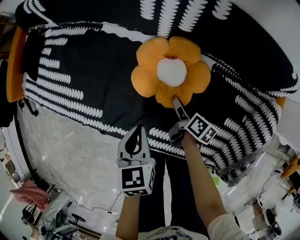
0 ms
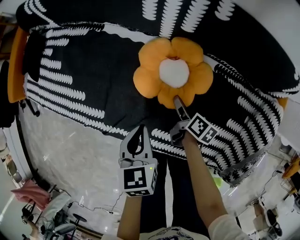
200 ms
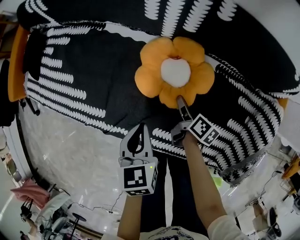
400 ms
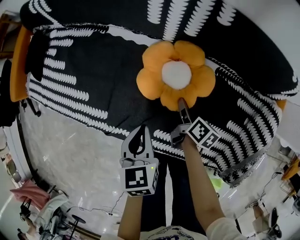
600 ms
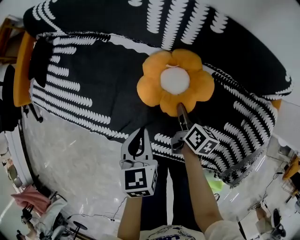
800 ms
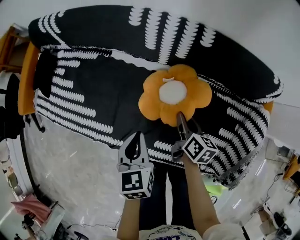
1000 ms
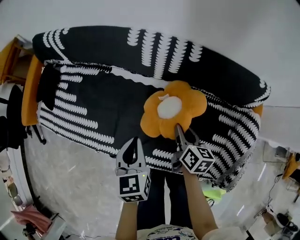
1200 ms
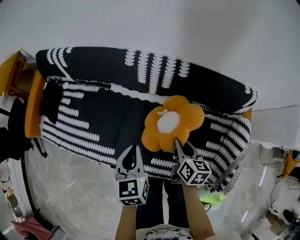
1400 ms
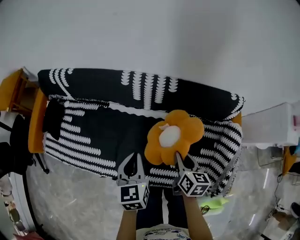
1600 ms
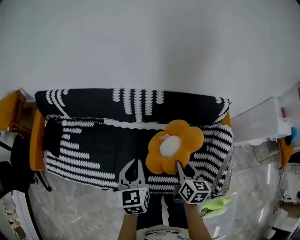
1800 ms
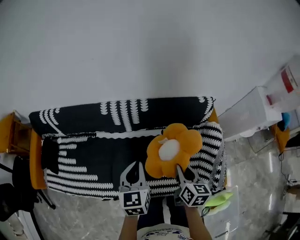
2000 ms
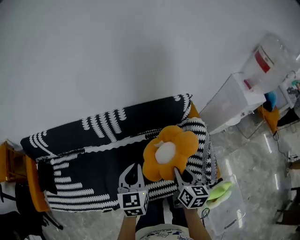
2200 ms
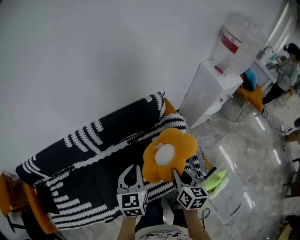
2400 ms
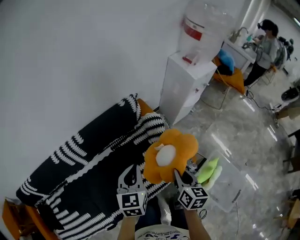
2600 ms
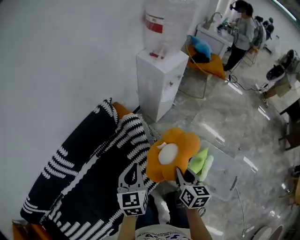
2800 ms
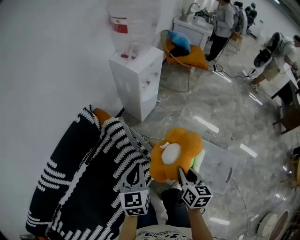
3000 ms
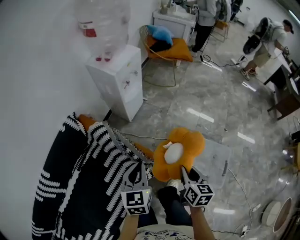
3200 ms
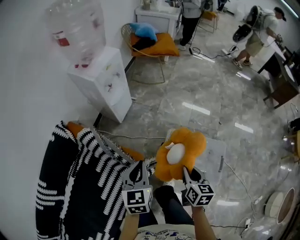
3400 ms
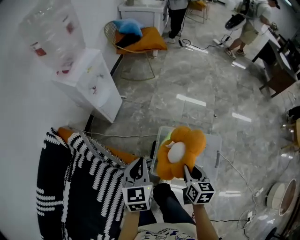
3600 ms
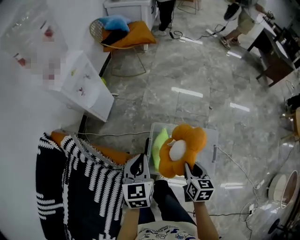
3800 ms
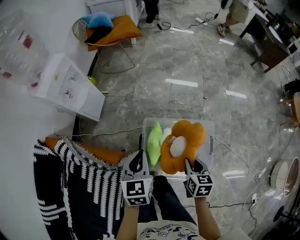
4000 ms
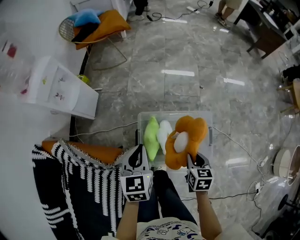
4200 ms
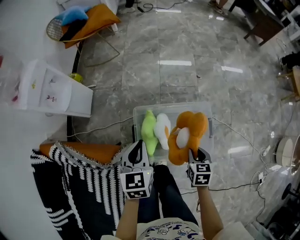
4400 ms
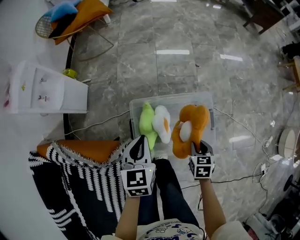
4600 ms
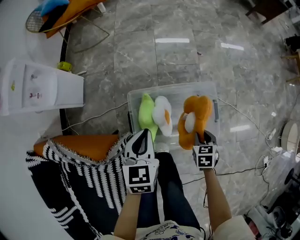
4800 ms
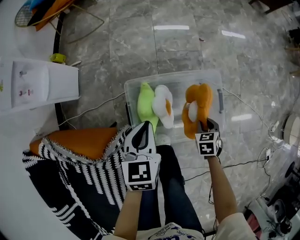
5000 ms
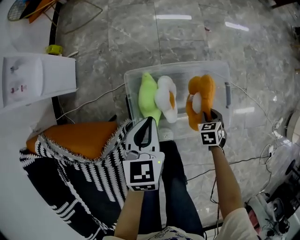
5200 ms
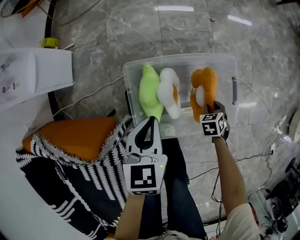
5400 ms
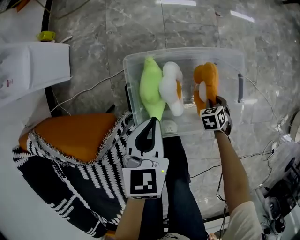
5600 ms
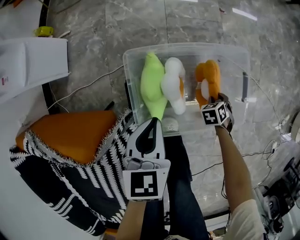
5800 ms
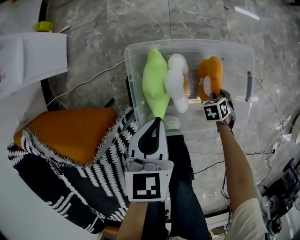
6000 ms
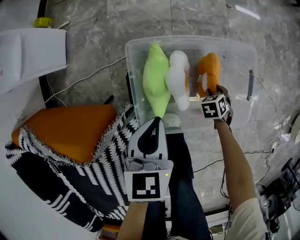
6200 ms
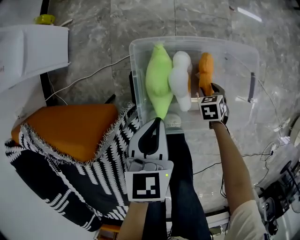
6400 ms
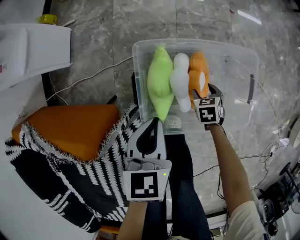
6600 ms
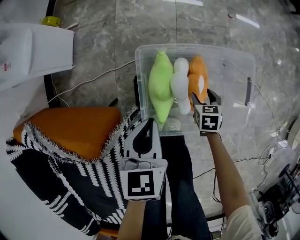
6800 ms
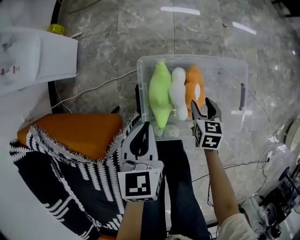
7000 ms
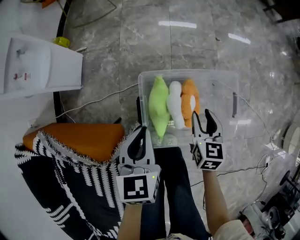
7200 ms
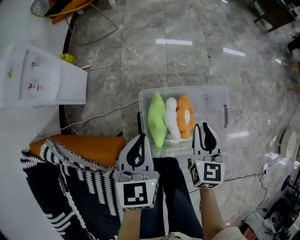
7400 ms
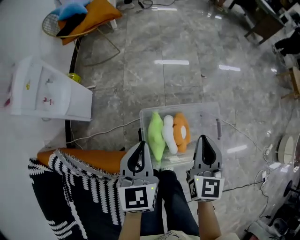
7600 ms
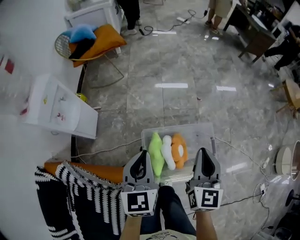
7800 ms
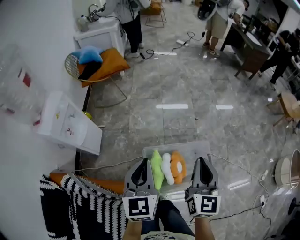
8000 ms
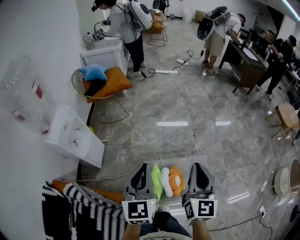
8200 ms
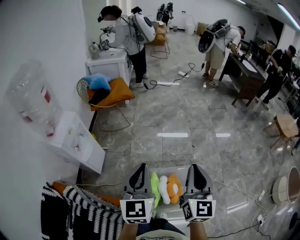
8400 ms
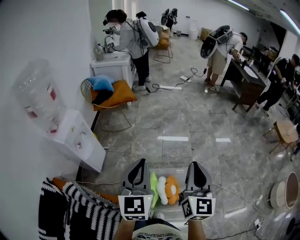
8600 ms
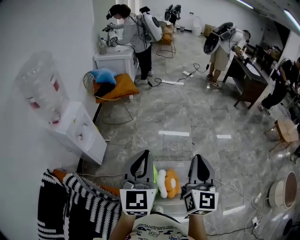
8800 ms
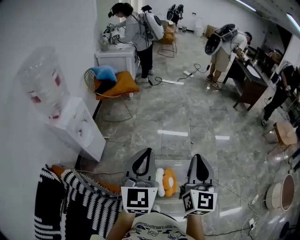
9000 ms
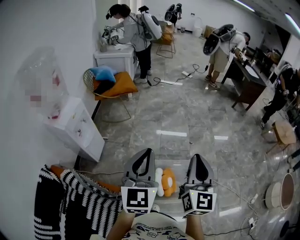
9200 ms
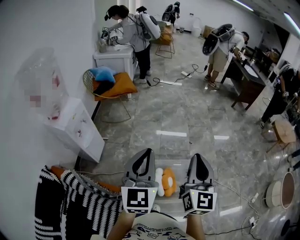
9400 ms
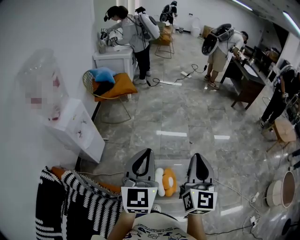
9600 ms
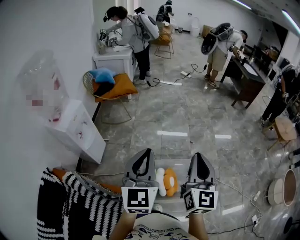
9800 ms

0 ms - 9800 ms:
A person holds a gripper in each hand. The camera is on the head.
0 ms - 1400 ms: The grippers both shift upward by about 25 cm. The right gripper turns by approximately 30 degrees, and closes its fingers.
1400 ms - 2800 ms: Both grippers are carried roughly 50 cm. The right gripper swivels roughly 60 degrees. Meanwhile the left gripper rotates about 70 degrees.
2800 ms - 4200 ms: The two grippers travel together, some 60 cm. The right gripper turns by approximately 40 degrees. Meanwhile the left gripper turns by roughly 40 degrees.
4200 ms - 5600 ms: Both grippers travel together downward, approximately 35 cm. The right gripper swivels some 40 degrees.
5600 ms - 7000 ms: The right gripper shifts by about 20 cm, rotates roughly 40 degrees, and opens up, while the left gripper ends up about 10 cm from where it was.
7000 ms - 8400 ms: The grippers both shift upward by roughly 60 cm. The left gripper angles its fingers upward, by roughly 40 degrees; the right gripper tips its fingers upward by some 50 degrees, and closes its fingers.
8400 ms - 9800 ms: The right gripper is displaced backward by about 5 cm. The left gripper is displaced backward and upward by roughly 10 cm.

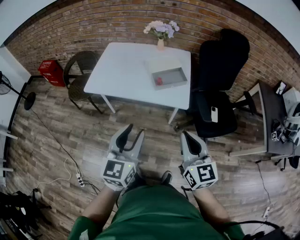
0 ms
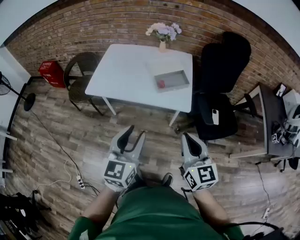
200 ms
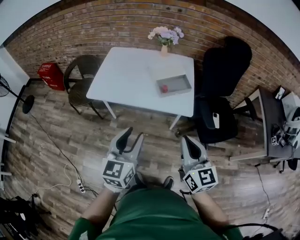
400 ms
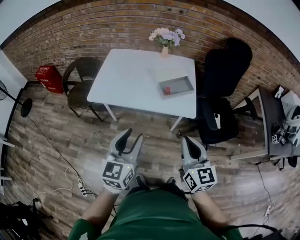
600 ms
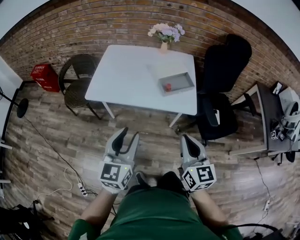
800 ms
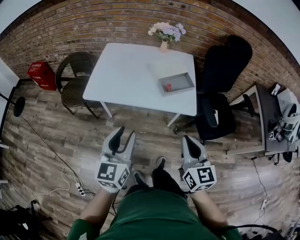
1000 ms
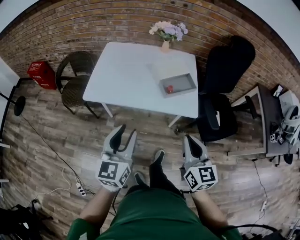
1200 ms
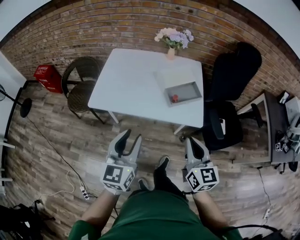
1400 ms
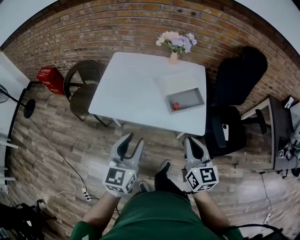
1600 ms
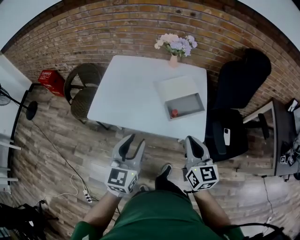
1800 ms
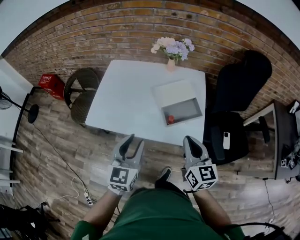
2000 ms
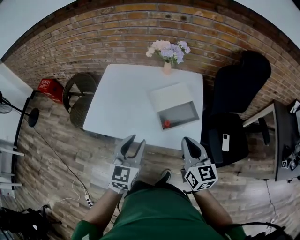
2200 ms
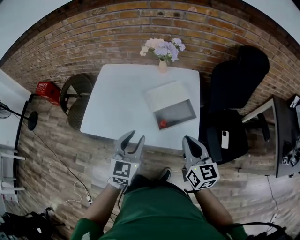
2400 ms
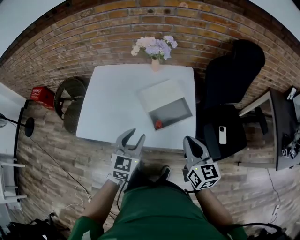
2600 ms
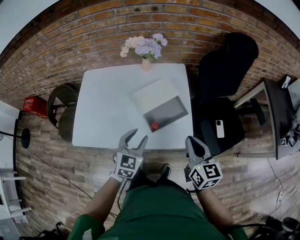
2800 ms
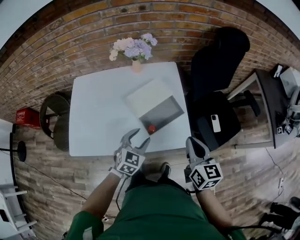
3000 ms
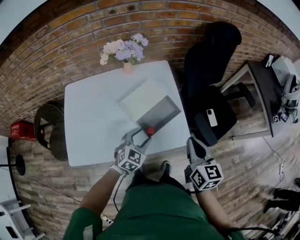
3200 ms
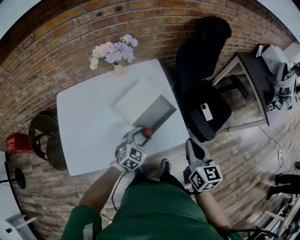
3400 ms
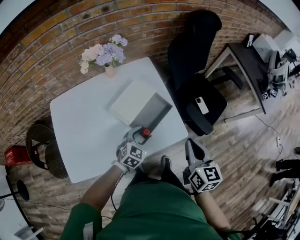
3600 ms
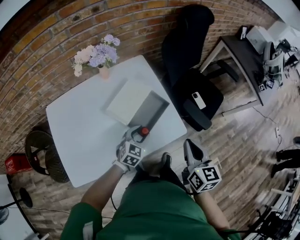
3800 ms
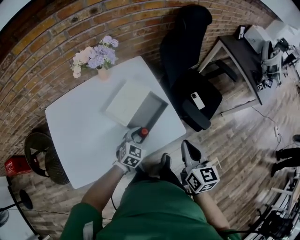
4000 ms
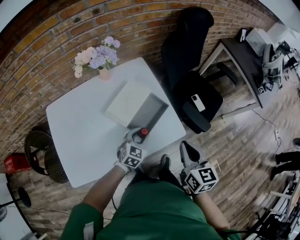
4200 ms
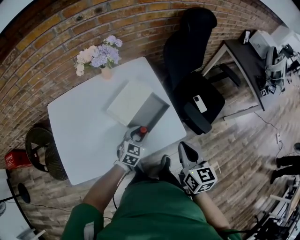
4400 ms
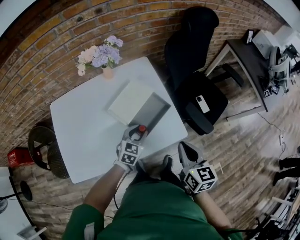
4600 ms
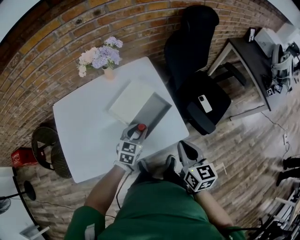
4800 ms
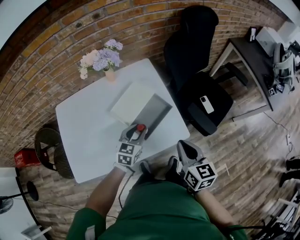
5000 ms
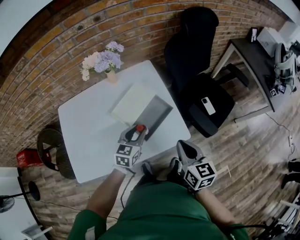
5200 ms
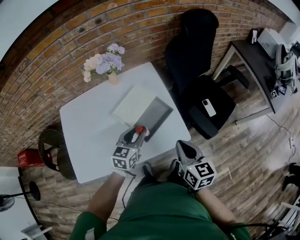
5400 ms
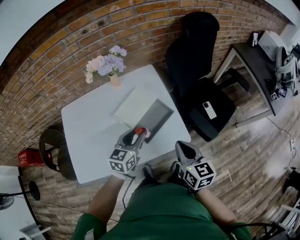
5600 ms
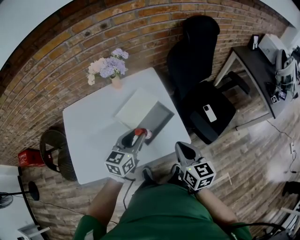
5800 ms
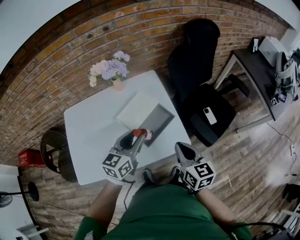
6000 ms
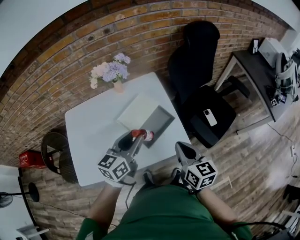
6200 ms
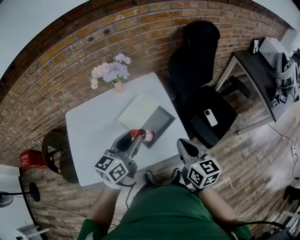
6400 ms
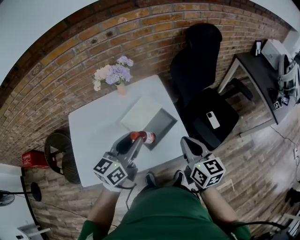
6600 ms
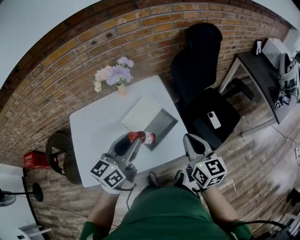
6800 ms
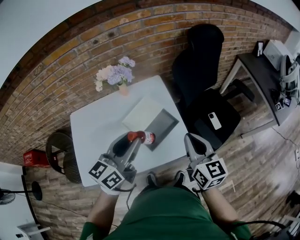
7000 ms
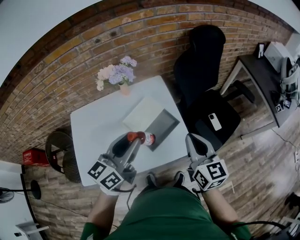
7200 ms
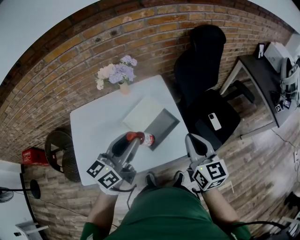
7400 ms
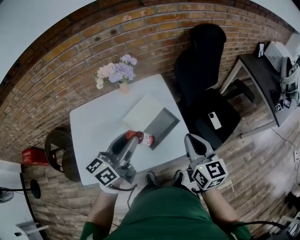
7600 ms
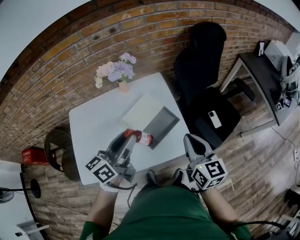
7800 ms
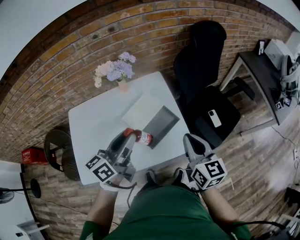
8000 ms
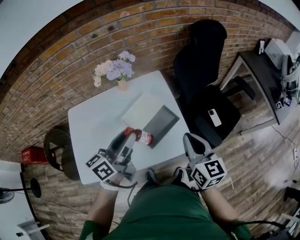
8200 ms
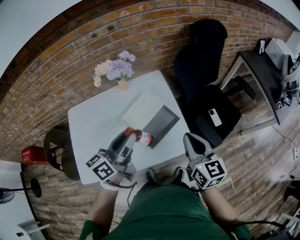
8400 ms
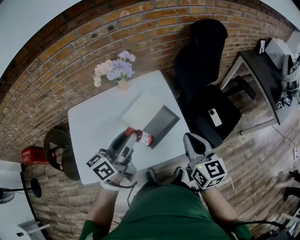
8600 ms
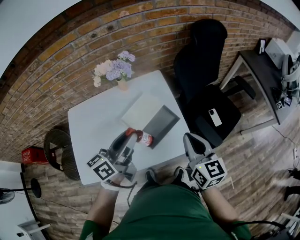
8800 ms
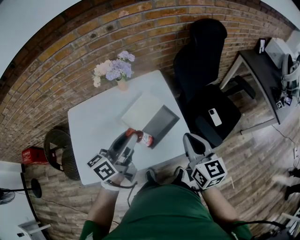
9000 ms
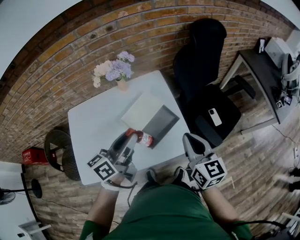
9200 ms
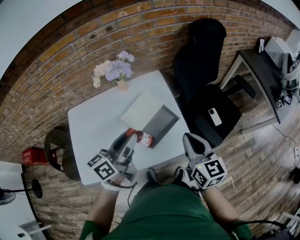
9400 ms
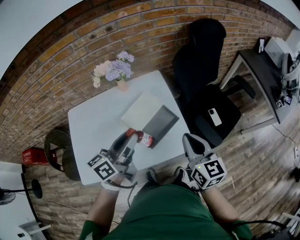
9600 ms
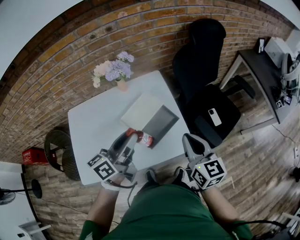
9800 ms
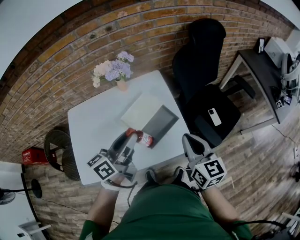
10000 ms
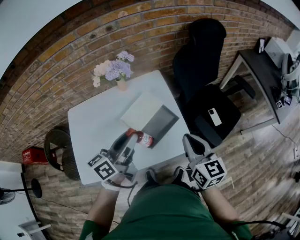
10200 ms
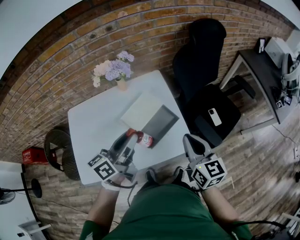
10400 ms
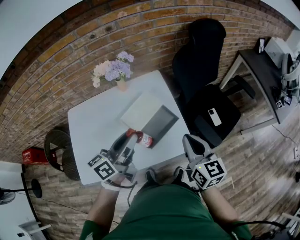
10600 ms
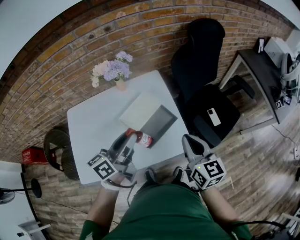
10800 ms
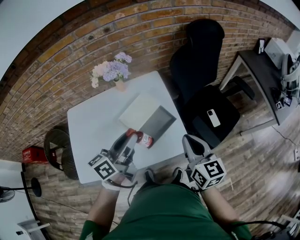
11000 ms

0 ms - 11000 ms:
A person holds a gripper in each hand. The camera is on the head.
0 ms - 1600 ms: Both grippers travel together forward and to the left, approximately 20 cm.
1600 ms - 3200 ms: The left gripper ends up approximately 35 cm from where it was, and swivels roughly 50 degrees. Meanwhile the right gripper ends up about 20 cm from where it was, and swivels approximately 30 degrees.
3200 ms - 4800 ms: The left gripper travels forward by approximately 5 cm, and closes its fingers.
4800 ms - 6200 ms: The left gripper shifts roughly 20 cm upward, and changes its angle by about 30 degrees.
6200 ms - 7800 ms: Both grippers travel together upward, about 5 cm.
7800 ms - 11000 ms: The grippers stay close to where they were, moving slightly.

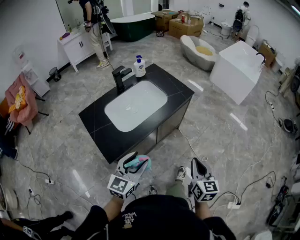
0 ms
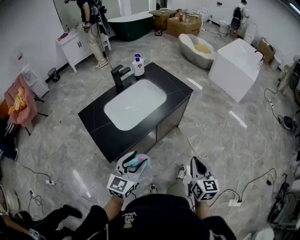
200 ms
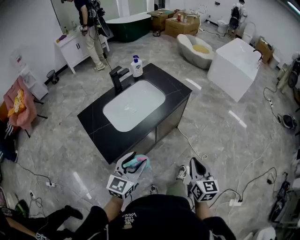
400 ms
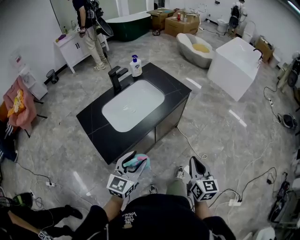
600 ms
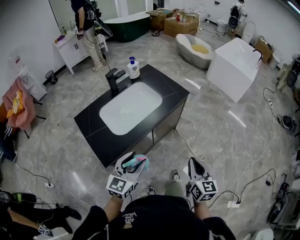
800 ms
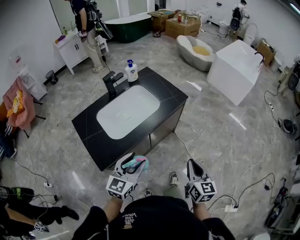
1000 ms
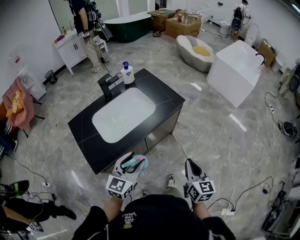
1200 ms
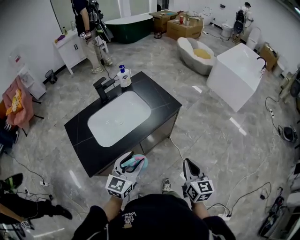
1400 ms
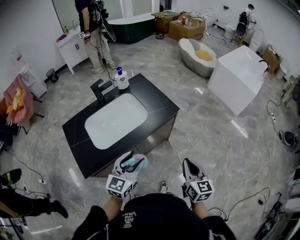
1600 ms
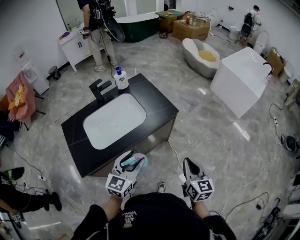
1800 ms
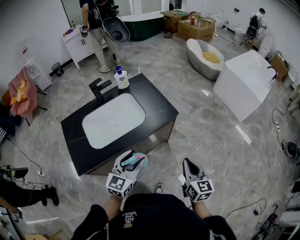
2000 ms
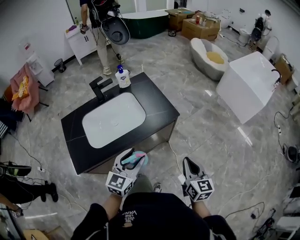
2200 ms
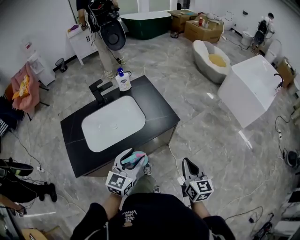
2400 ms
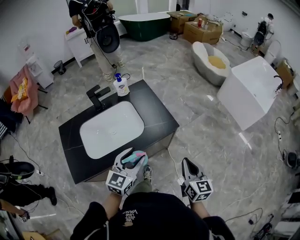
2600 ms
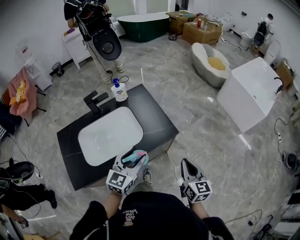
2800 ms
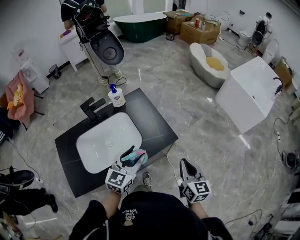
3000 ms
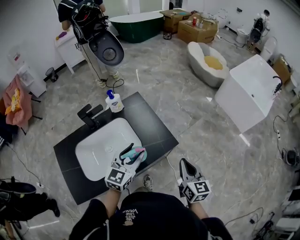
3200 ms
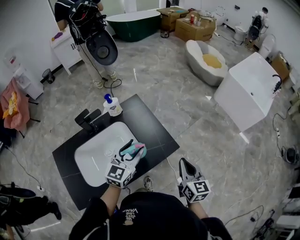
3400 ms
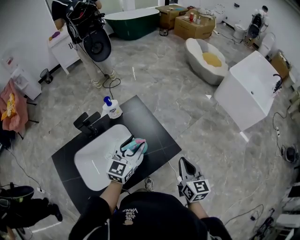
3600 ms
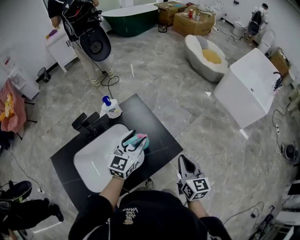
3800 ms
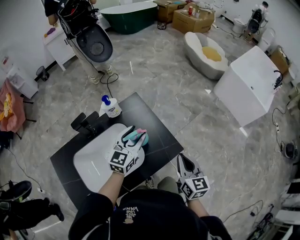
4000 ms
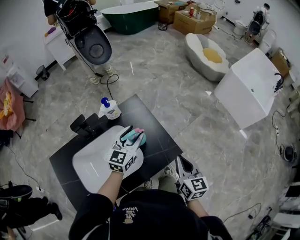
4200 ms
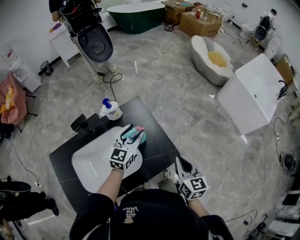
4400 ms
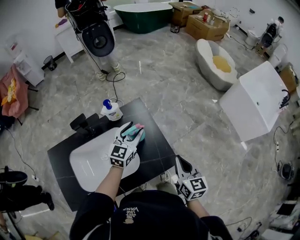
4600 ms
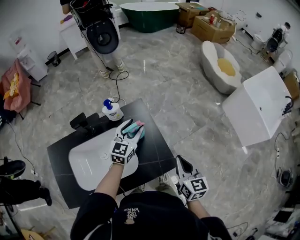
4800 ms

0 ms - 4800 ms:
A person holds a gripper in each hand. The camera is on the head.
0 ms - 1600 ms: The grippers both shift forward and to the right by about 20 cm.
1600 ms - 3200 ms: Both grippers move forward, some 25 cm.
3200 ms - 4800 ms: Both grippers travel together forward, roughly 20 cm.
